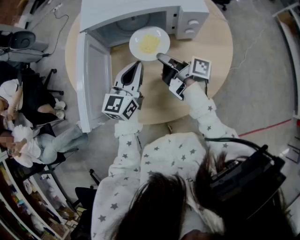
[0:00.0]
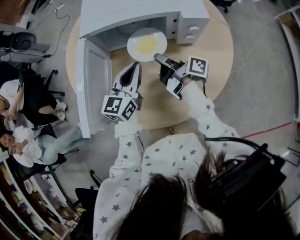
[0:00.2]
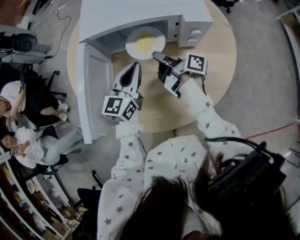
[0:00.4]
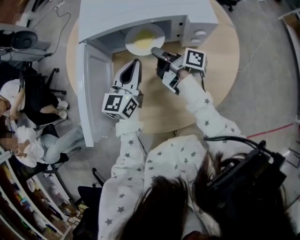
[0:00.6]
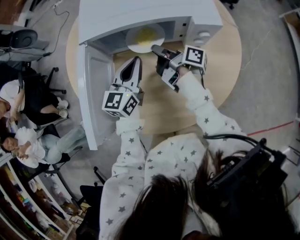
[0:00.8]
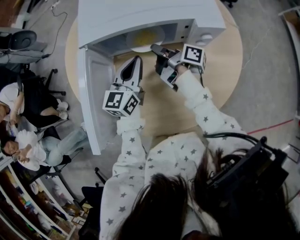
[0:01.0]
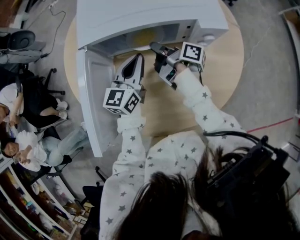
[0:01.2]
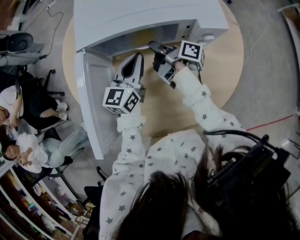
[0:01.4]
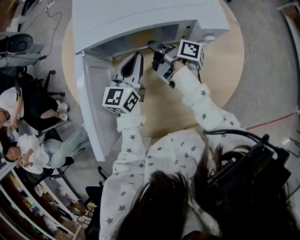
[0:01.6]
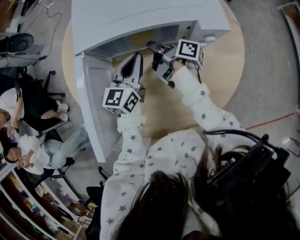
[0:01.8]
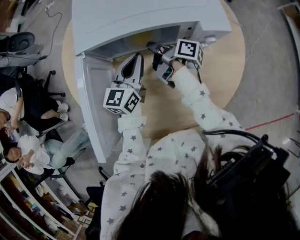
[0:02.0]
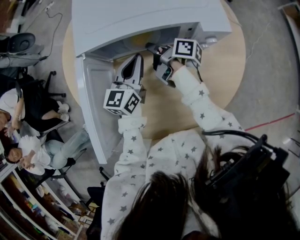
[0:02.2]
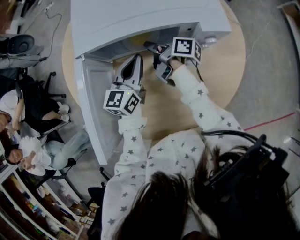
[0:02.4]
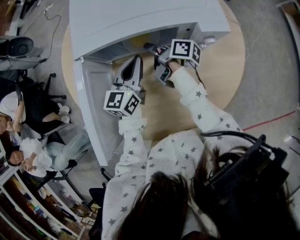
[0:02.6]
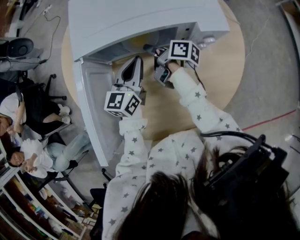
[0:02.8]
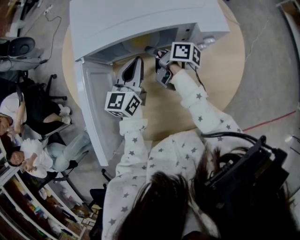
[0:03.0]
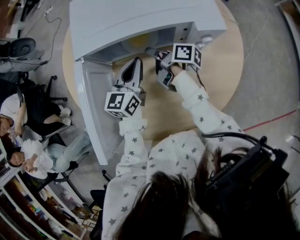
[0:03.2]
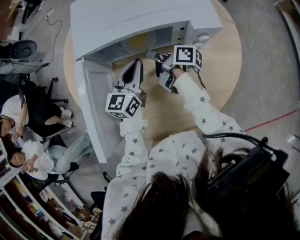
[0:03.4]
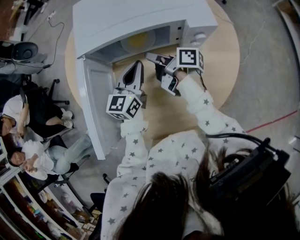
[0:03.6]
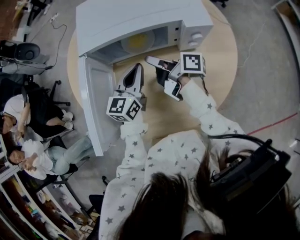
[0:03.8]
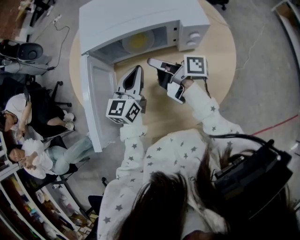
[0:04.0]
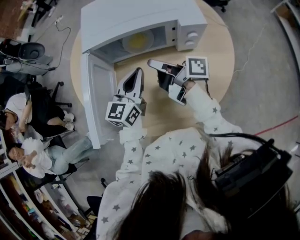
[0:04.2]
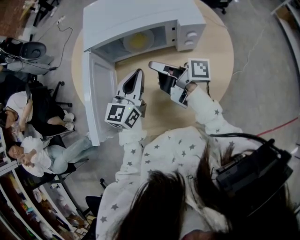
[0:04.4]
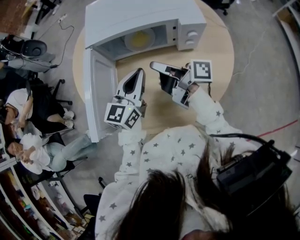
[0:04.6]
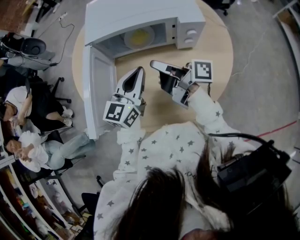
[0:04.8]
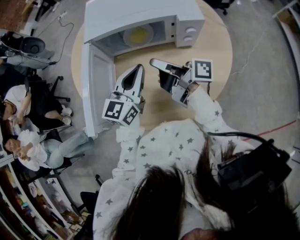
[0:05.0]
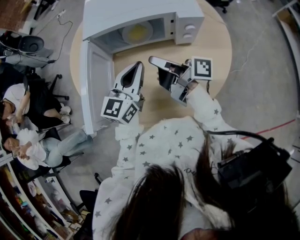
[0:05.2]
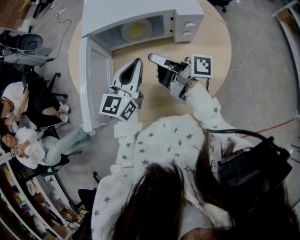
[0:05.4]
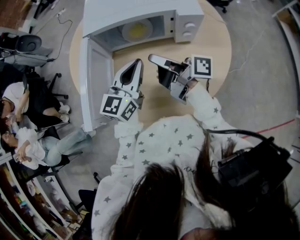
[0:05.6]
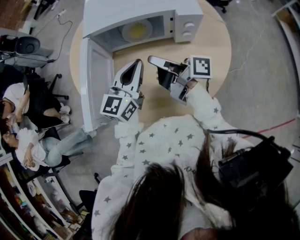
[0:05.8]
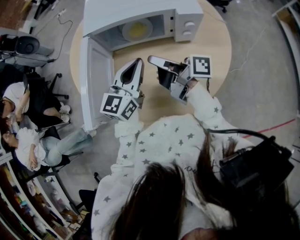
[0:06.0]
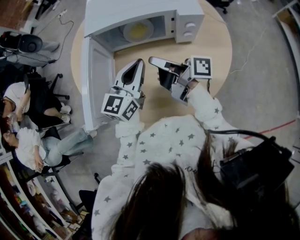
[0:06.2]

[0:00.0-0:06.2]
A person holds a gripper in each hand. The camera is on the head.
0:00.0 to 0:01.6: The left gripper moves some 15 cm.
0:03.2 to 0:04.6: The left gripper changes place by some 15 cm.

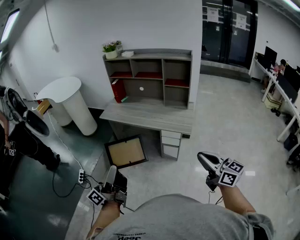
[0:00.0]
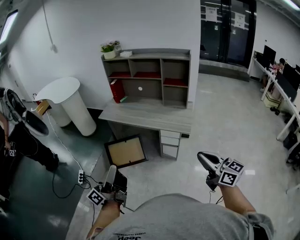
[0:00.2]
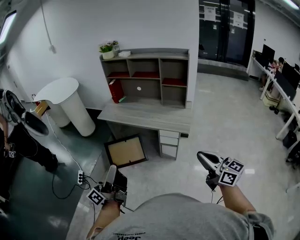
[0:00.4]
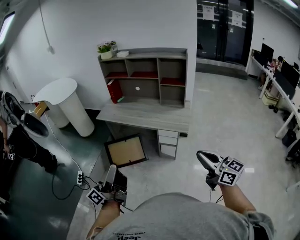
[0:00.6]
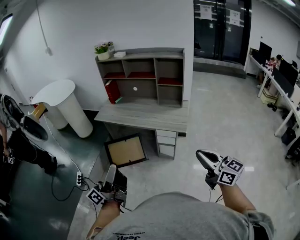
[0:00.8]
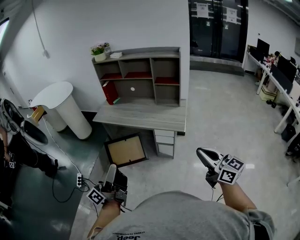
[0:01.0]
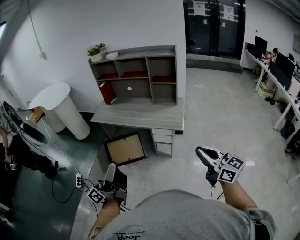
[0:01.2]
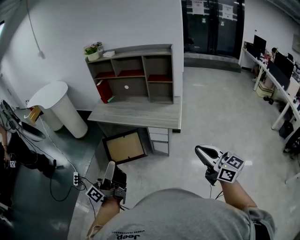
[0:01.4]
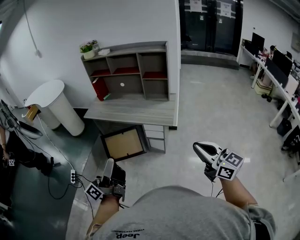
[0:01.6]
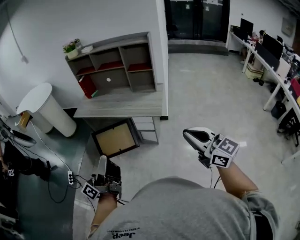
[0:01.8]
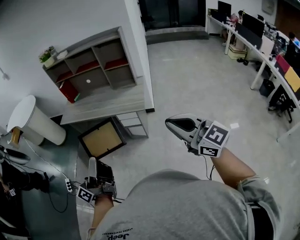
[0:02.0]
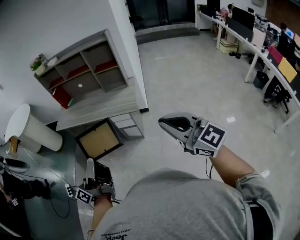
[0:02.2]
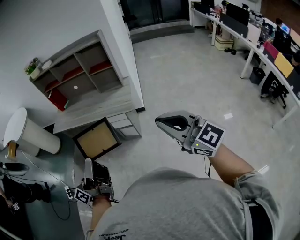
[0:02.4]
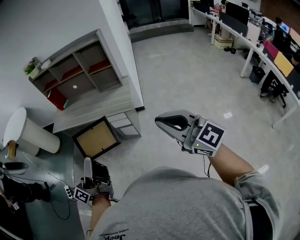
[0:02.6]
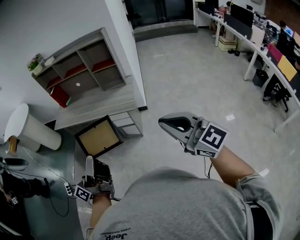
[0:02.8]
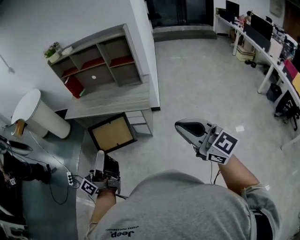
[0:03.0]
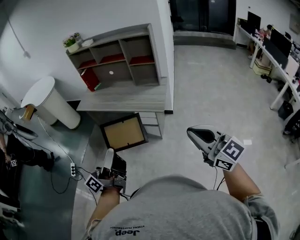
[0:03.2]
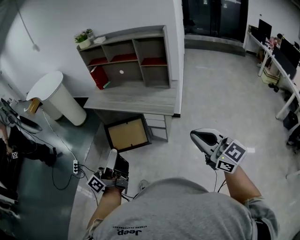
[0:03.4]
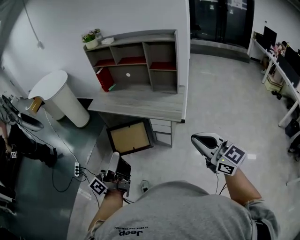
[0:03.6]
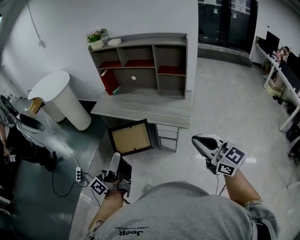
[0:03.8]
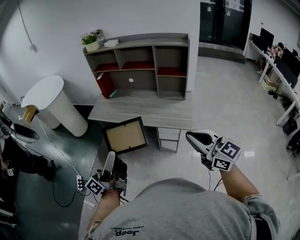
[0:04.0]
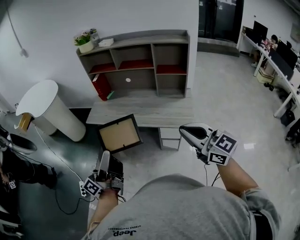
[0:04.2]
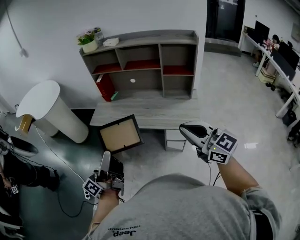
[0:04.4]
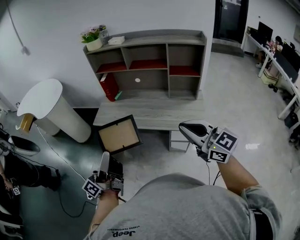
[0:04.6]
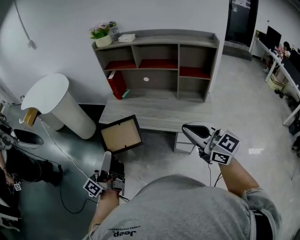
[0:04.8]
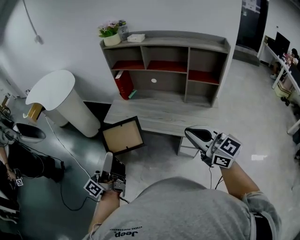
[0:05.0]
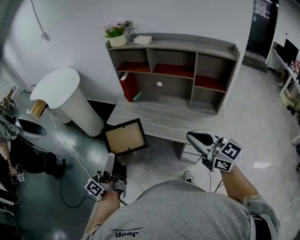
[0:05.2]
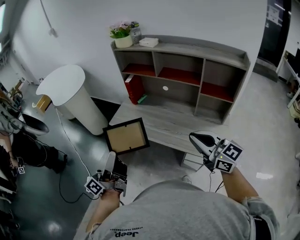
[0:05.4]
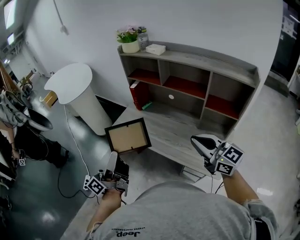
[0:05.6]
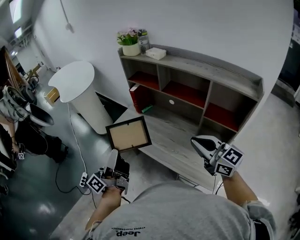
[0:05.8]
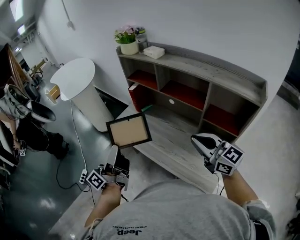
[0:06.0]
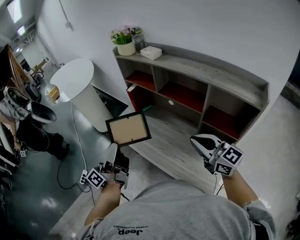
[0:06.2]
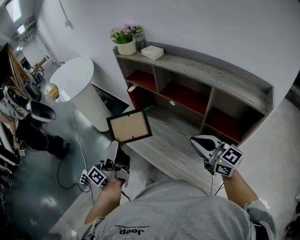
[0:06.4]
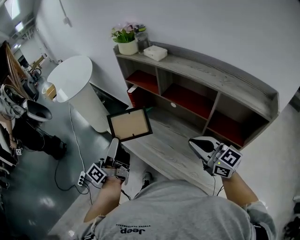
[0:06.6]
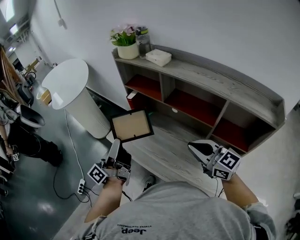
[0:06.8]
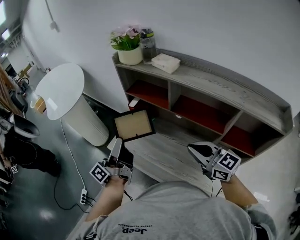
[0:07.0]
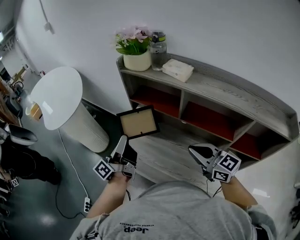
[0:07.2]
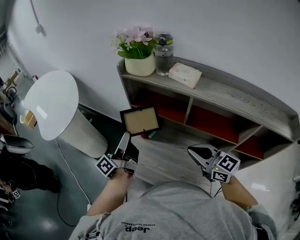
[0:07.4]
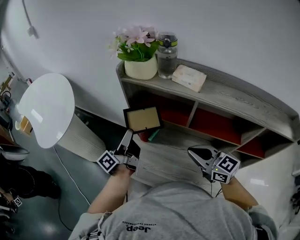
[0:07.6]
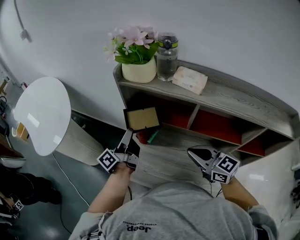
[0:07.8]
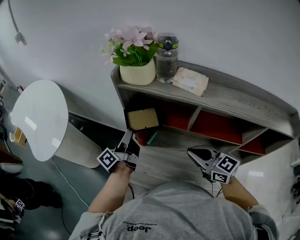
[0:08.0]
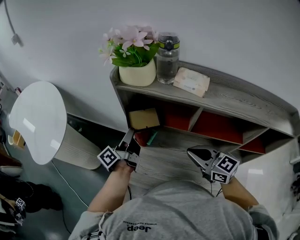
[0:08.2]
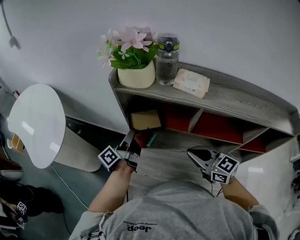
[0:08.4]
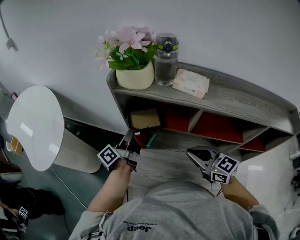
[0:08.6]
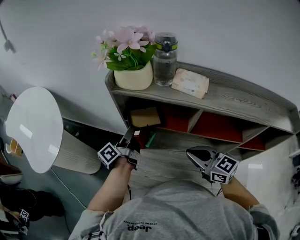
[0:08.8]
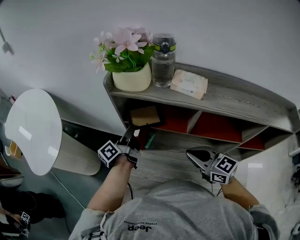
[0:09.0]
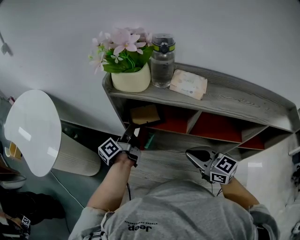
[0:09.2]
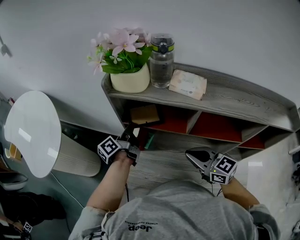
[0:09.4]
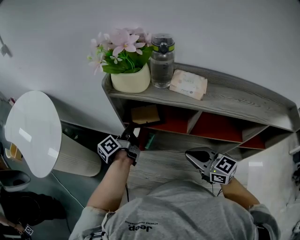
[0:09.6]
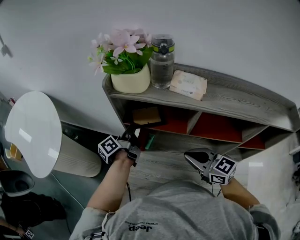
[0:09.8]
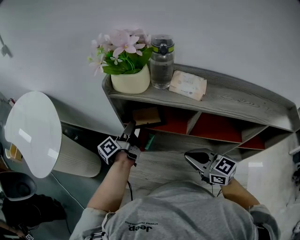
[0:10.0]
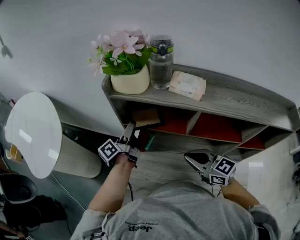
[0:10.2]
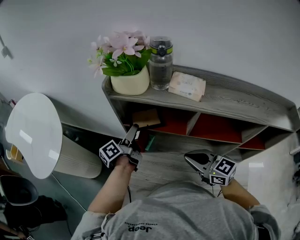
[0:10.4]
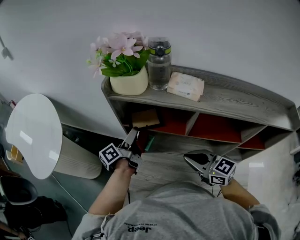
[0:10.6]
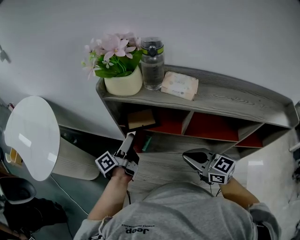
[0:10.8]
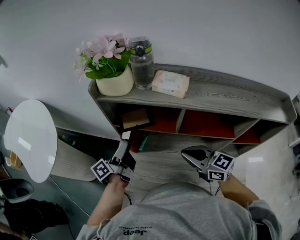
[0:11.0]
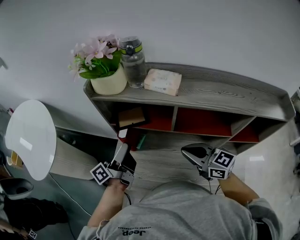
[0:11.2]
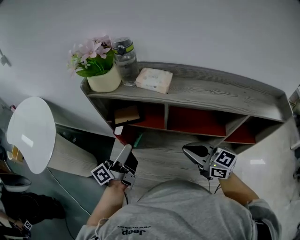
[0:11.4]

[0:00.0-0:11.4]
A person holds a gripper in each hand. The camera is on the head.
0:00.0 to 0:01.4: The grippers both shift to the right by about 10 cm.
0:01.4 to 0:02.8: The right gripper goes about 10 cm to the right and backward, and turns by about 20 degrees, while the left gripper moves to the right, some 15 cm.
0:02.8 to 0:04.2: The left gripper goes roughly 35 cm to the left and forward. The right gripper shifts some 40 cm forward and to the left.
0:04.2 to 0:05.6: Both grippers travel together forward, approximately 25 cm. The left gripper changes its angle by about 20 degrees.
0:05.6 to 0:07.2: The grippers both shift forward by roughly 35 cm.
0:07.2 to 0:08.6: The left gripper heads forward and downward, covering approximately 20 cm, and changes its angle by some 30 degrees, while the right gripper moves forward and to the left, roughly 10 cm.
0:08.6 to 0:10.0: The grippers move only a little.
0:10.0 to 0:11.4: The left gripper goes roughly 20 cm backward, upward and to the right, swivels approximately 30 degrees, and opens, then closes once more; the right gripper moves to the right, some 10 cm.

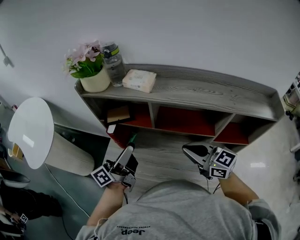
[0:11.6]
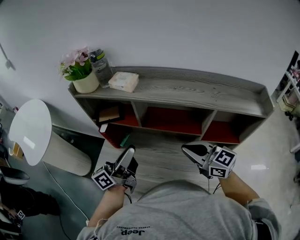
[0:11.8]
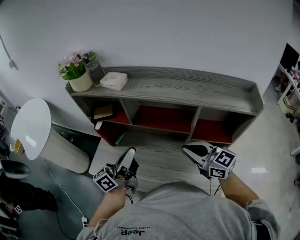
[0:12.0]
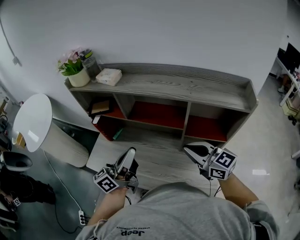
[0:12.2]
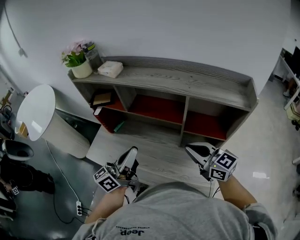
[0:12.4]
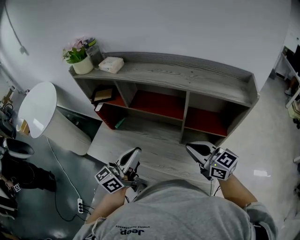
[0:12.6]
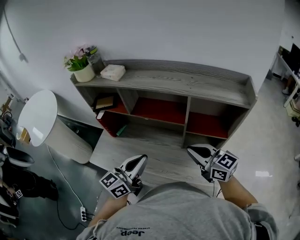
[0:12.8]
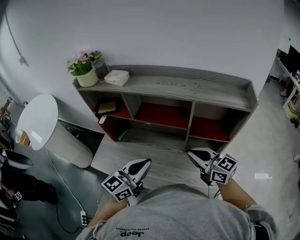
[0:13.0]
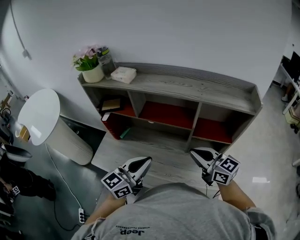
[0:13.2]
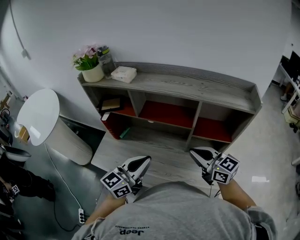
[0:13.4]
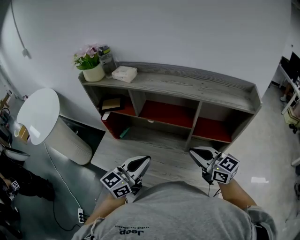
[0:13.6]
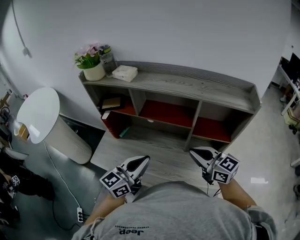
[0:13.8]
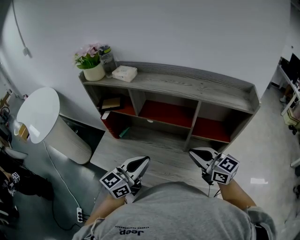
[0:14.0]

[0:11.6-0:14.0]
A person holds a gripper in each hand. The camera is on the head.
0:11.6 to 0:12.8: Both grippers move to the right and backward, approximately 20 cm. The left gripper turns by about 40 degrees, and closes its fingers.
0:12.8 to 0:14.0: The grippers move only a little.

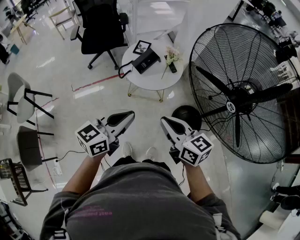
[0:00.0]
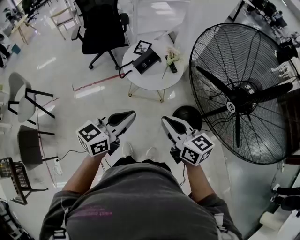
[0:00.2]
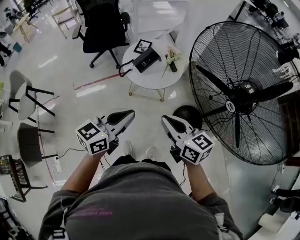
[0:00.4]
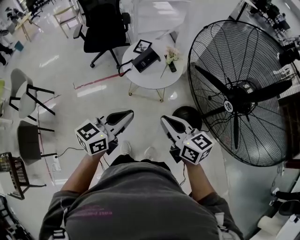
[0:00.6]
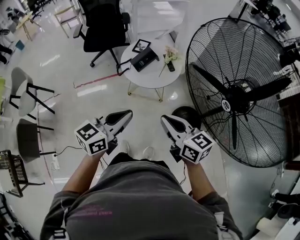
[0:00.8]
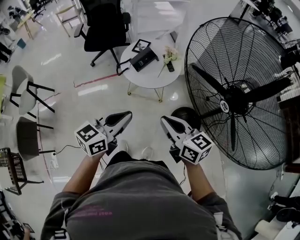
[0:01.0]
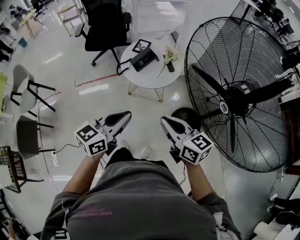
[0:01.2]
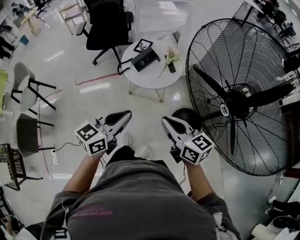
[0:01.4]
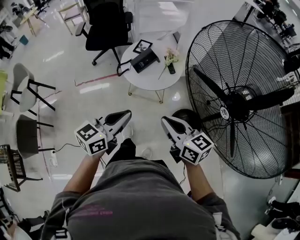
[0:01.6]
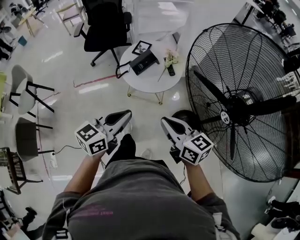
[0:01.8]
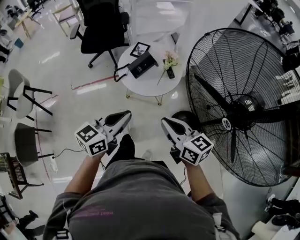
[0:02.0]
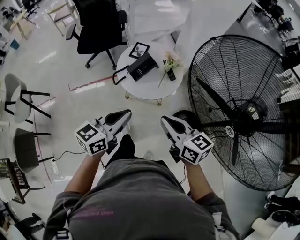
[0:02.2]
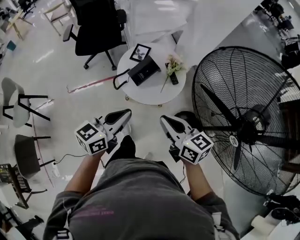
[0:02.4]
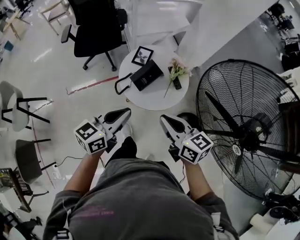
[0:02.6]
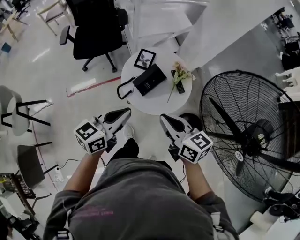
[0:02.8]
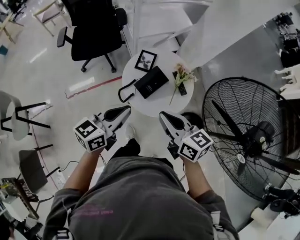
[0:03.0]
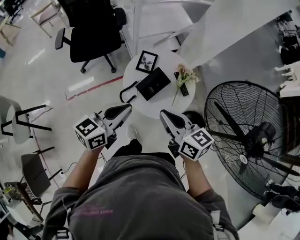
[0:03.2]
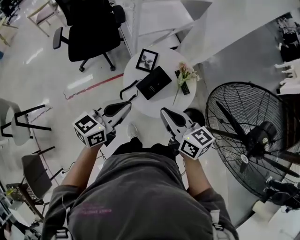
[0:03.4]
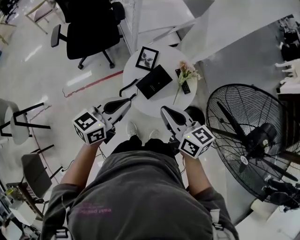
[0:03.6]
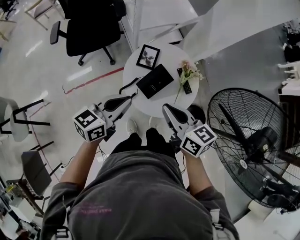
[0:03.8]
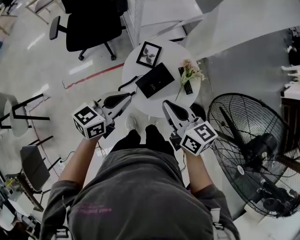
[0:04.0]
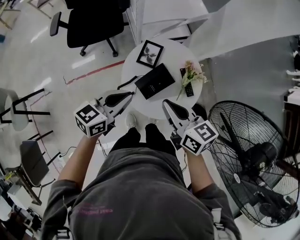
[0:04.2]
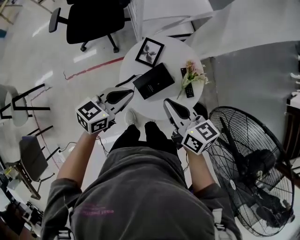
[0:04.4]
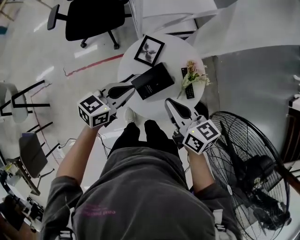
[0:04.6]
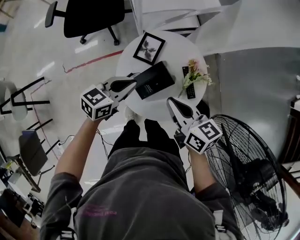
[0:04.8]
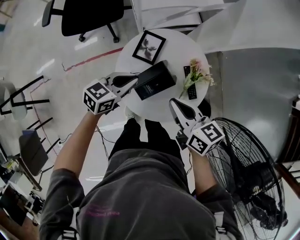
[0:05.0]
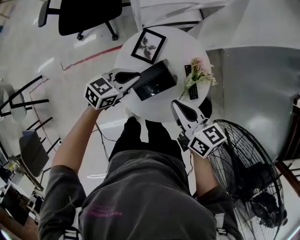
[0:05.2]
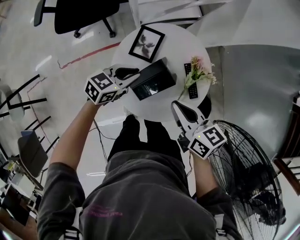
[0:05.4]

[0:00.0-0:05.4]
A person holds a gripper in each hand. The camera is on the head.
0:00.0 to 0:01.4: The two grippers go approximately 5 cm to the right.
0:01.4 to 0:02.8: Both grippers travel together forward and to the left, roughly 30 cm.
0:02.8 to 0:04.0: The left gripper is displaced forward and downward by about 15 cm, while the right gripper moves forward, roughly 15 cm.
0:04.0 to 0:05.4: The left gripper heads downward and forward, covering about 25 cm, and rotates about 20 degrees; the right gripper is displaced downward, forward and to the right by some 15 cm.
